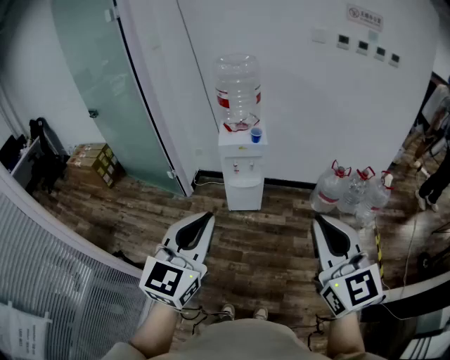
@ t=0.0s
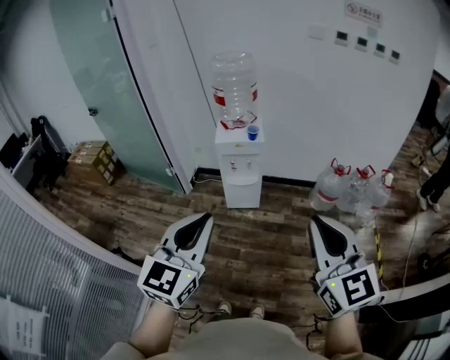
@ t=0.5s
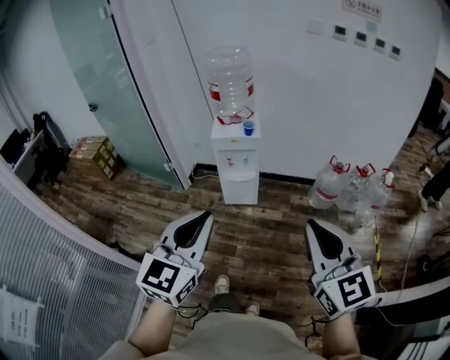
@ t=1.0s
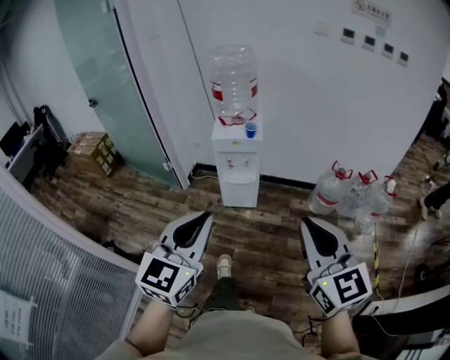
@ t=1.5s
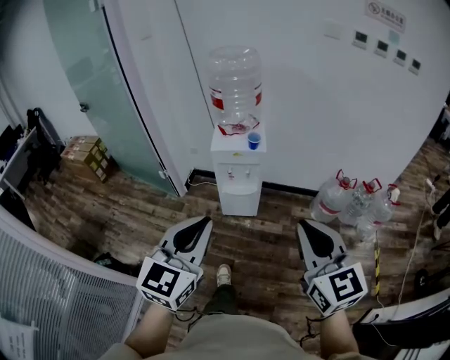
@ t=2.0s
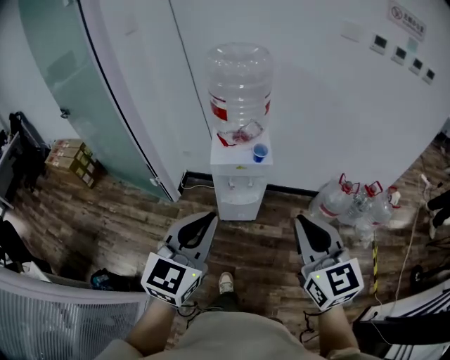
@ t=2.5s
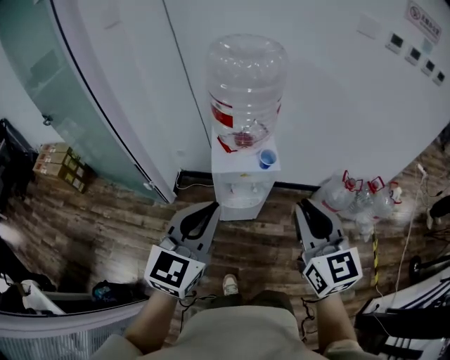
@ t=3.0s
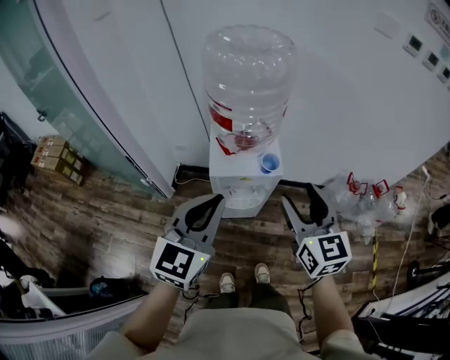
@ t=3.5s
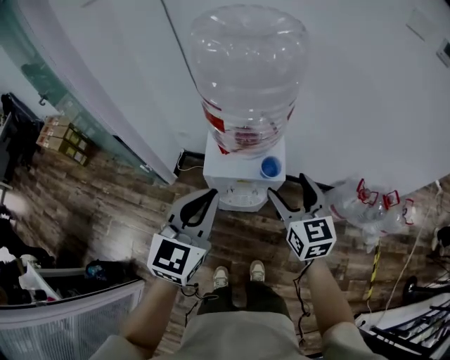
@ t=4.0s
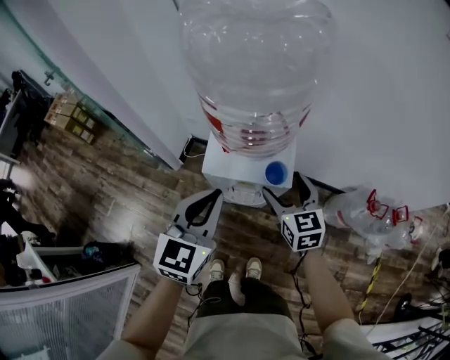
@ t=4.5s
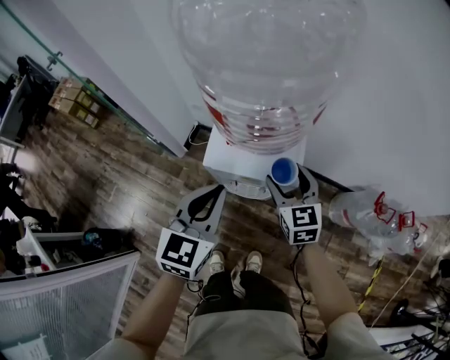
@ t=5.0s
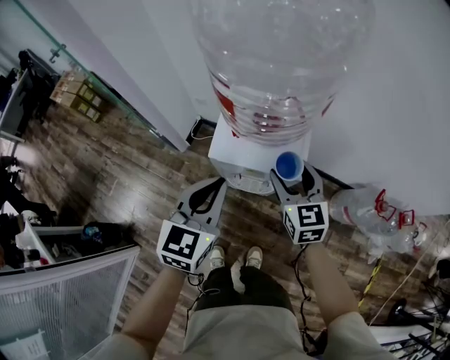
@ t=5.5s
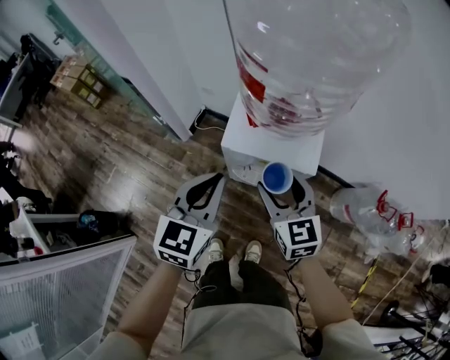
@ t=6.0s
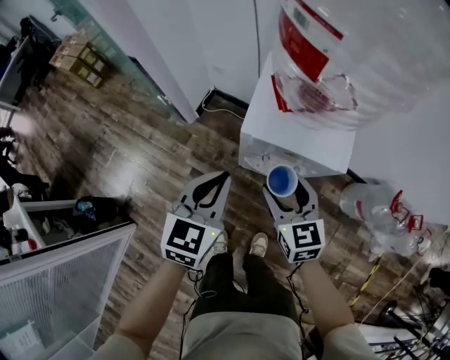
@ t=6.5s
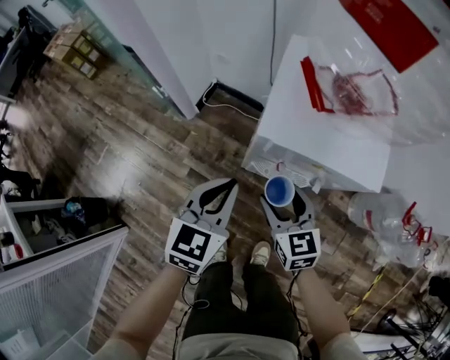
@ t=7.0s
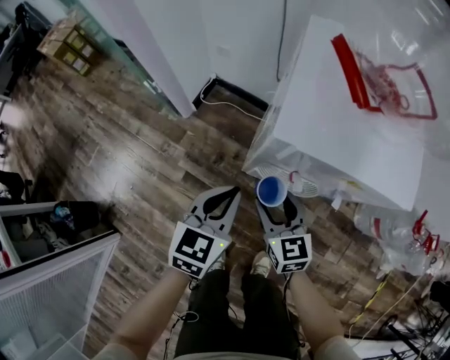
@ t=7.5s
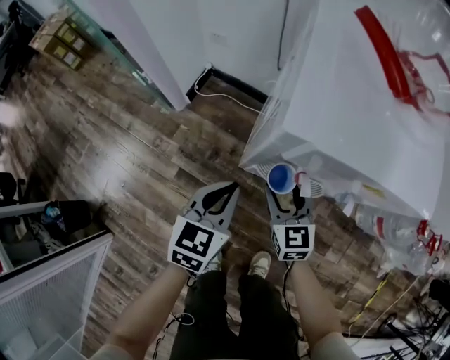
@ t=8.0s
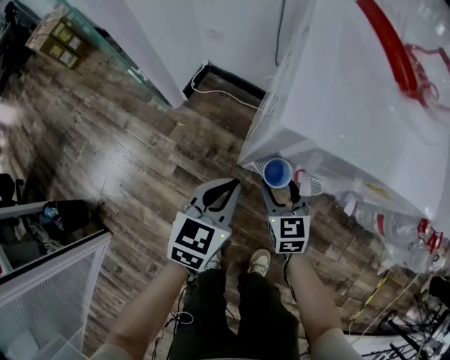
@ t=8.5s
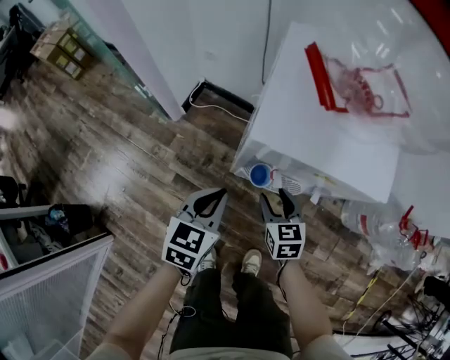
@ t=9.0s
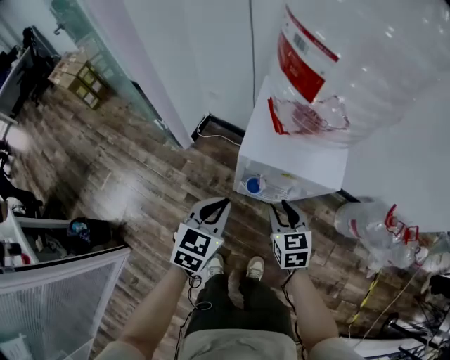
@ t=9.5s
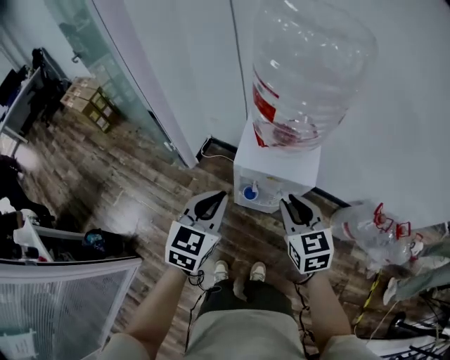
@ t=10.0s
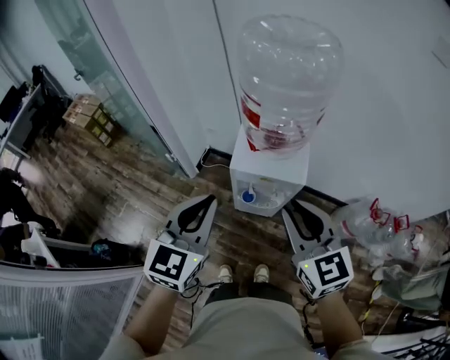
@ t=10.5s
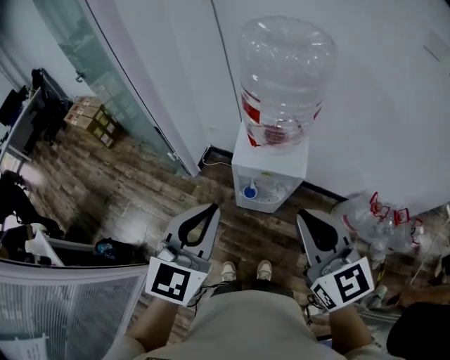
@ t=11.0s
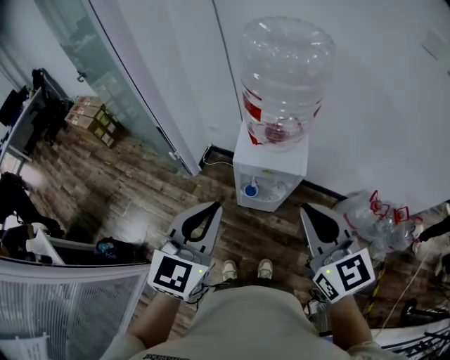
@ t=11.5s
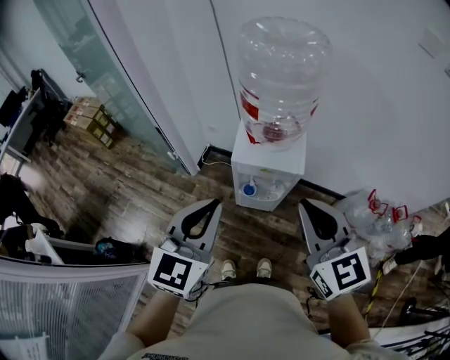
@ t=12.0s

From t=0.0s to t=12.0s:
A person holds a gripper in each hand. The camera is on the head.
From t=0.0s to t=2.0s: Both grippers travel together forward and downward, approximately 15 cm.
From t=2.0s to t=4.0s: Both grippers are carried forward, approximately 40 cm. The right gripper opens its fingers.
From t=4.0s to t=6.0s: The left gripper goes approximately 10 cm downward. The right gripper travels downward and to the left by approximately 15 cm.
From t=6.0s to t=8.0s: Both grippers move downward, some 40 cm.
From t=8.0s to t=10.0s: Both grippers travel together upward, about 40 cm. The right gripper closes.
From t=10.0s to t=12.0s: The two grippers go roughly 20 cm upward and backward.

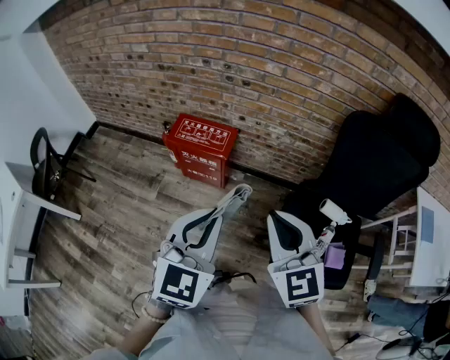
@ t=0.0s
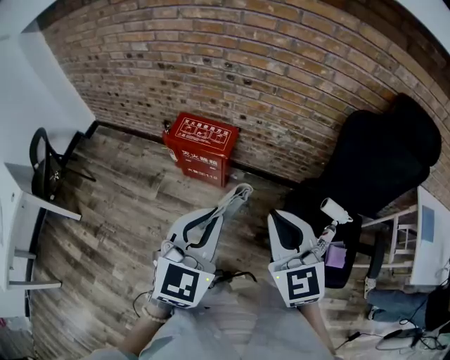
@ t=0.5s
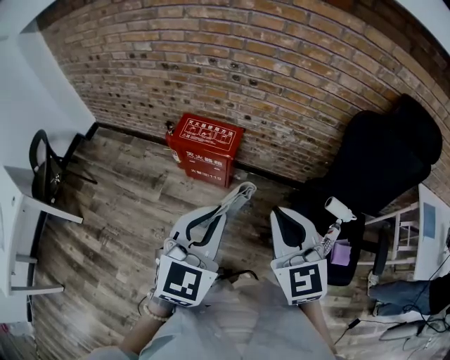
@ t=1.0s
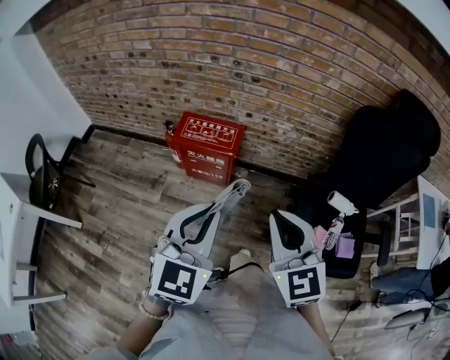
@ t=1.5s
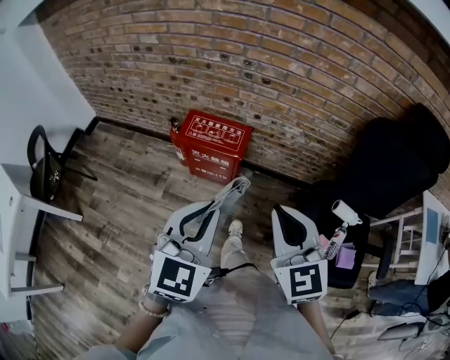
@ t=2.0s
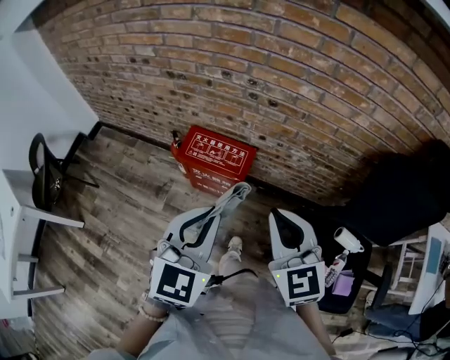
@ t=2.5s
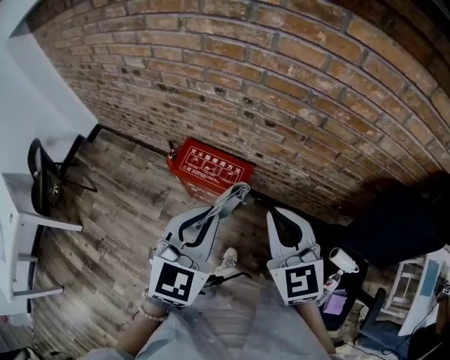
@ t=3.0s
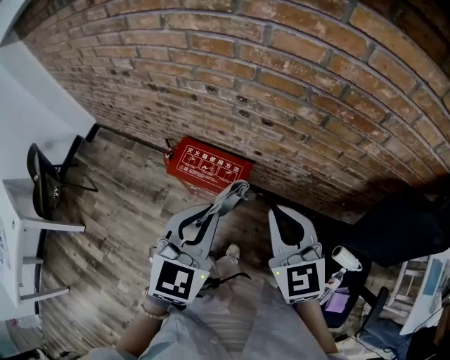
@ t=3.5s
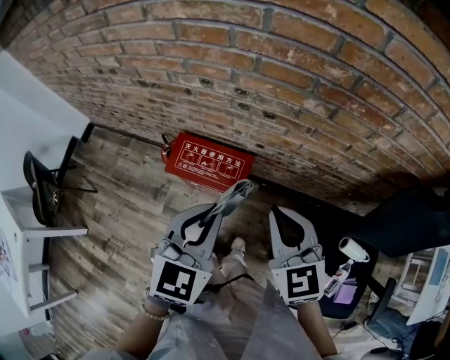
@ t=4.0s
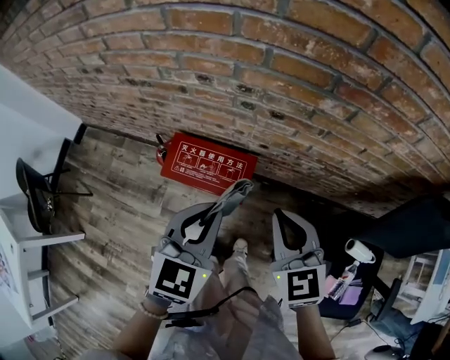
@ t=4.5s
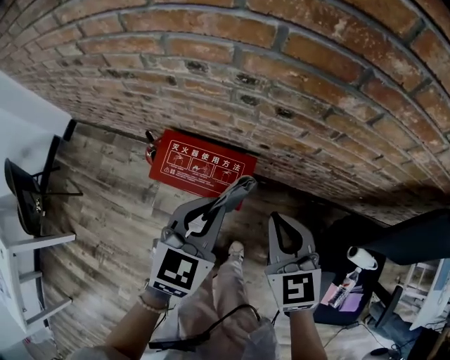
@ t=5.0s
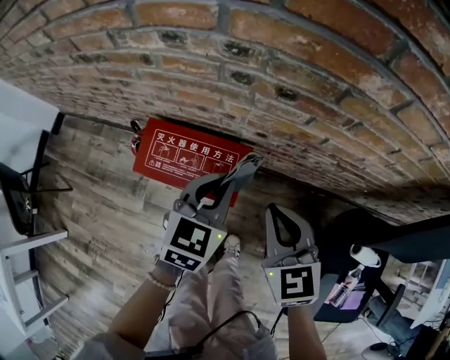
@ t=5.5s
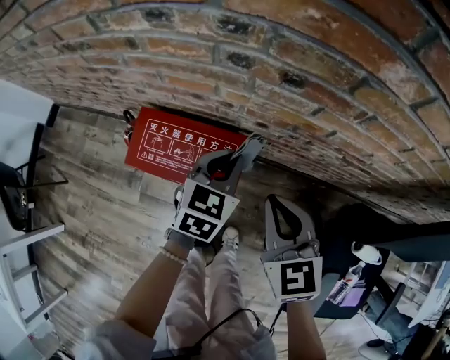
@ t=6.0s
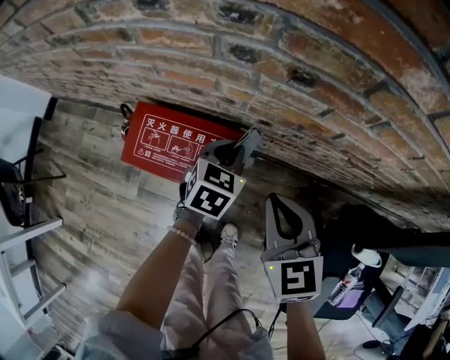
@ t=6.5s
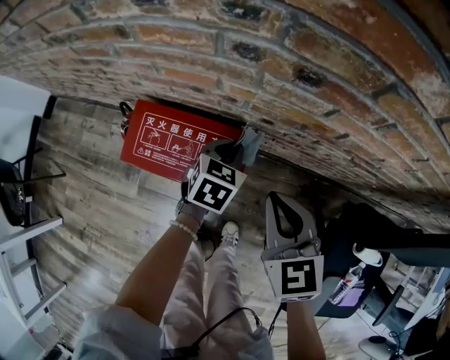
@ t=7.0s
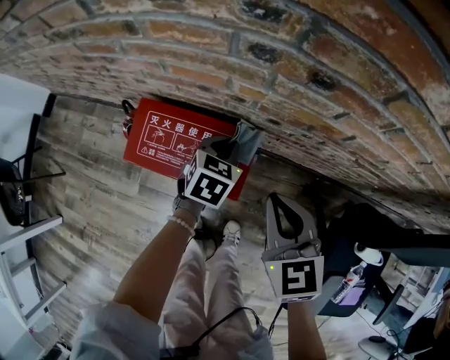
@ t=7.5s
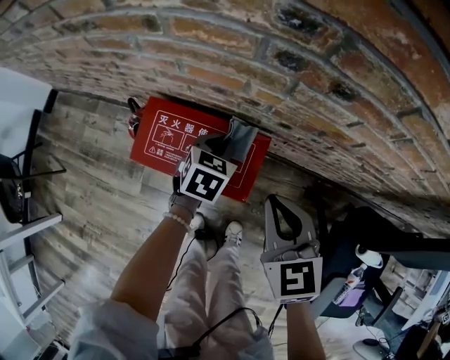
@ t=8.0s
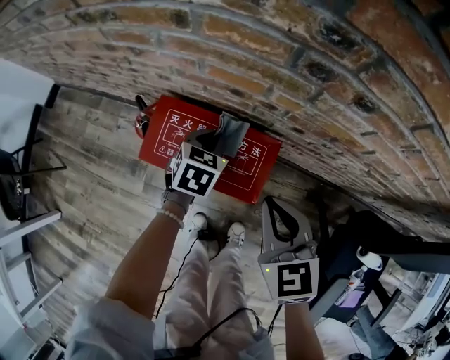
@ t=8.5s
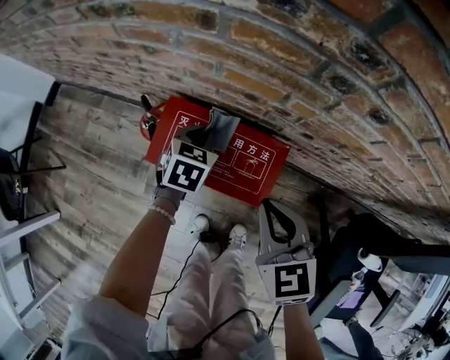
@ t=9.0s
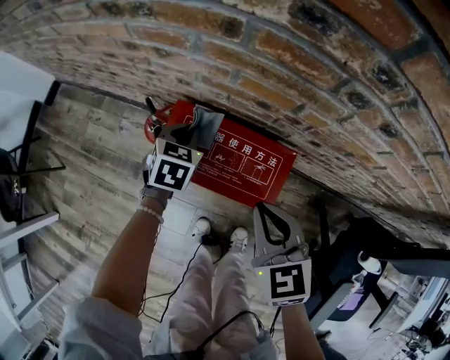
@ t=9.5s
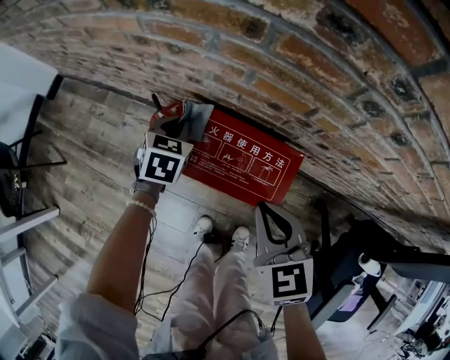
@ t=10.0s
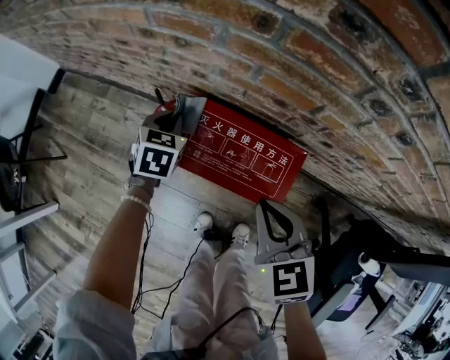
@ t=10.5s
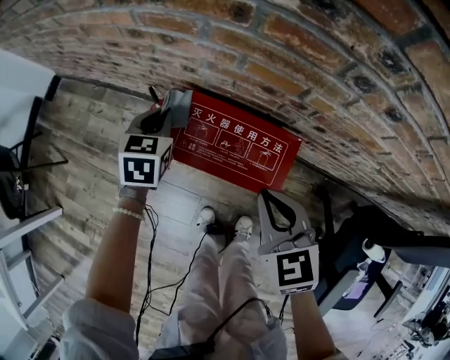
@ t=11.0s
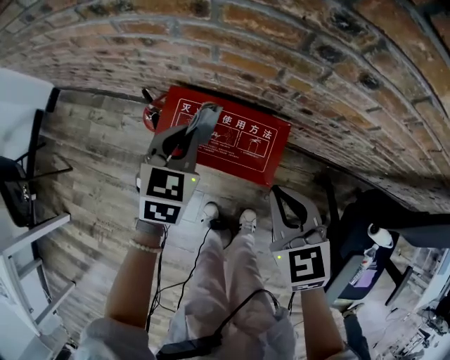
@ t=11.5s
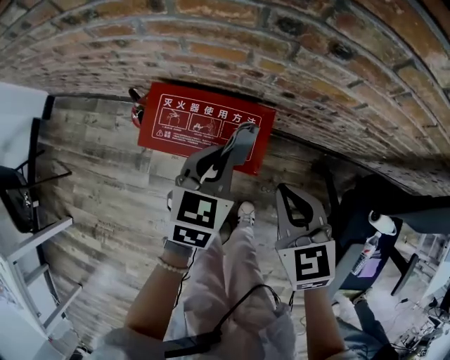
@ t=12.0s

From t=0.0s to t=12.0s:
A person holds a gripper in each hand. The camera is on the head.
From t=0.0s to t=2.0s: Both grippers move to the left, about 10 cm.
From t=2.0s to t=4.0s: The two grippers go about 25 cm forward.
From t=4.0s to t=6.0s: The right gripper is displaced downward and forward by some 20 cm, while the left gripper shifts roughly 35 cm downward and forward.
From t=6.0s to t=8.0s: The right gripper shifts by approximately 5 cm. The left gripper moves downward and to the left, approximately 15 cm.
From t=8.0s to t=10.0s: The right gripper travels to the left by roughly 10 cm. Meanwhile the left gripper moves to the left, approximately 20 cm.
From t=10.0s to t=12.0s: The left gripper heads to the right, backward and upward, covering about 25 cm, and swivels about 20 degrees. The right gripper goes some 10 cm to the right and backward.

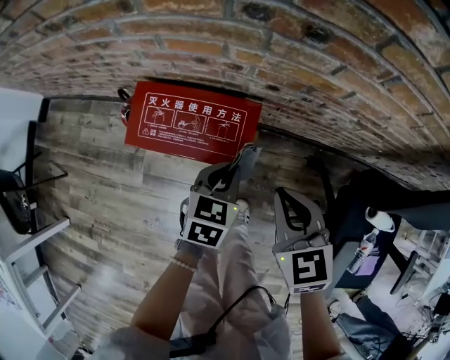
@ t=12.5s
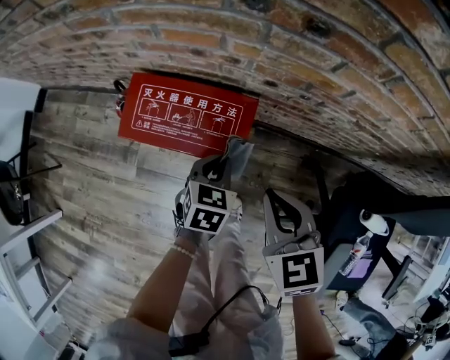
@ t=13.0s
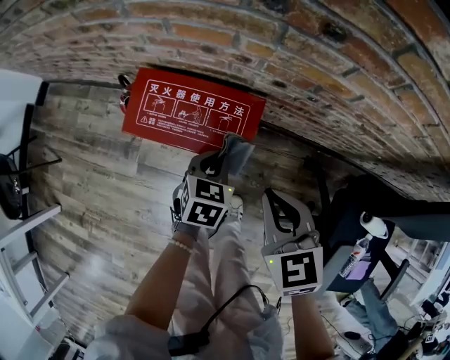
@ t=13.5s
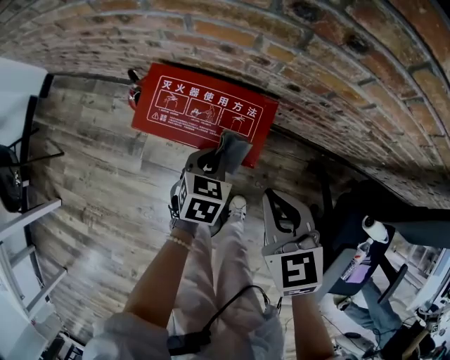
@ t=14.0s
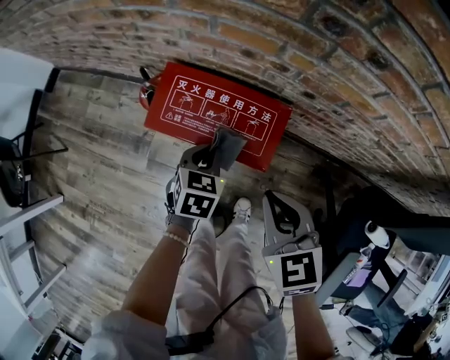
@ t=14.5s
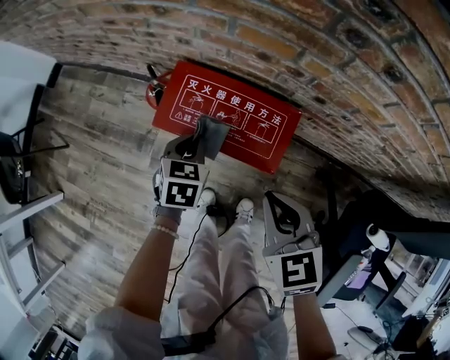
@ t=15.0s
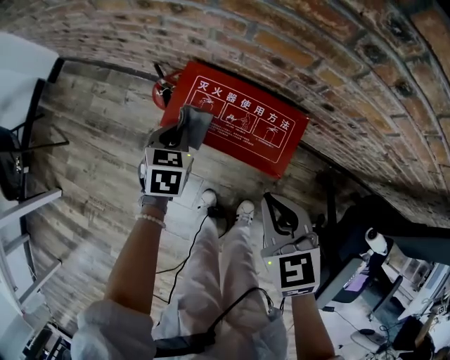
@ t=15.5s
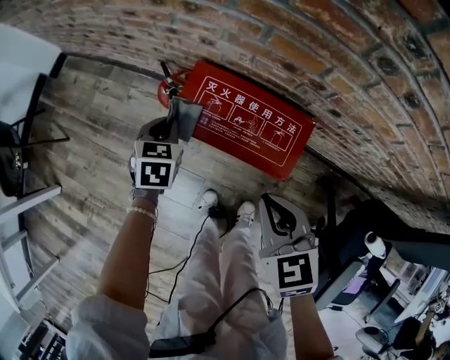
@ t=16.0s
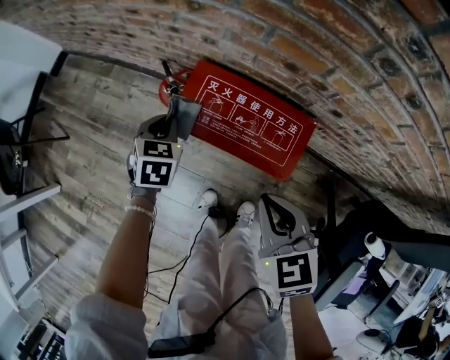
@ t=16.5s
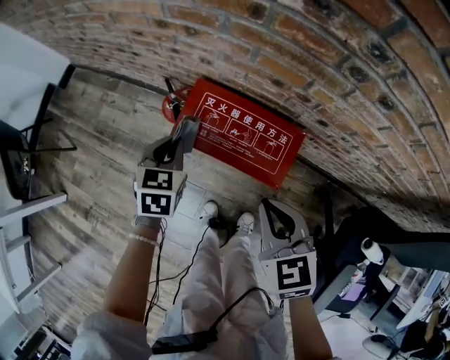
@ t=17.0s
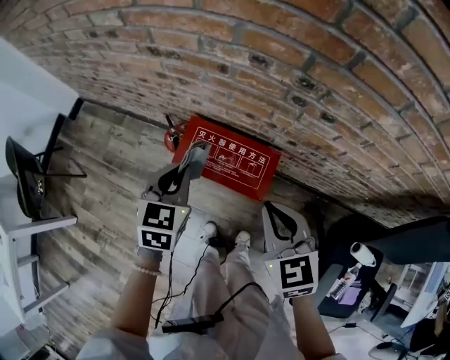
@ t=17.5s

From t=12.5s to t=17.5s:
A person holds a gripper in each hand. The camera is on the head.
From t=12.5s to t=15.0s: The right gripper moves to the left, some 10 cm. The left gripper goes about 20 cm to the left.
From t=15.0s to t=17.5s: The right gripper moves upward, roughly 15 cm; the left gripper travels upward by about 20 cm.
